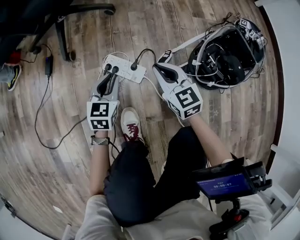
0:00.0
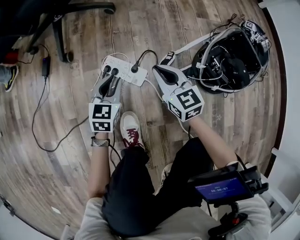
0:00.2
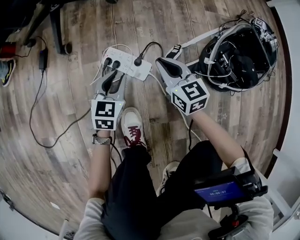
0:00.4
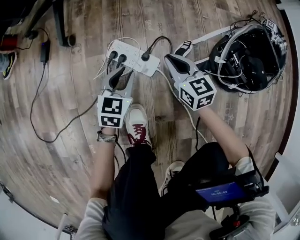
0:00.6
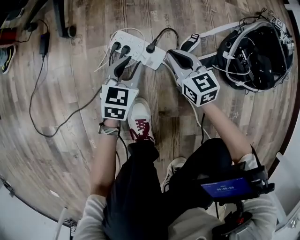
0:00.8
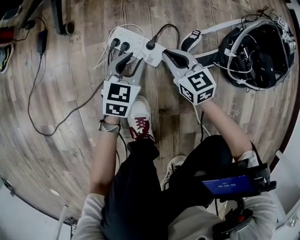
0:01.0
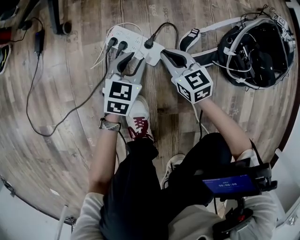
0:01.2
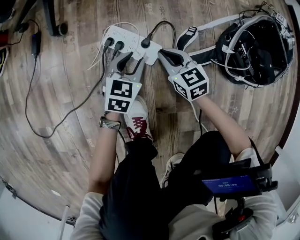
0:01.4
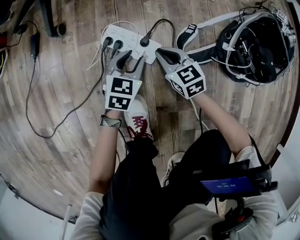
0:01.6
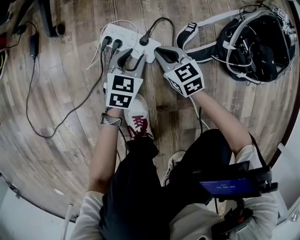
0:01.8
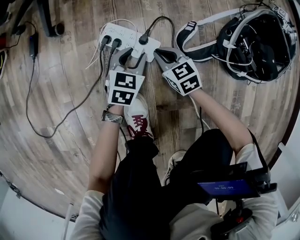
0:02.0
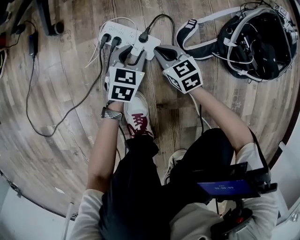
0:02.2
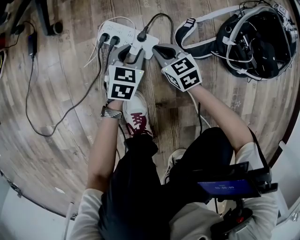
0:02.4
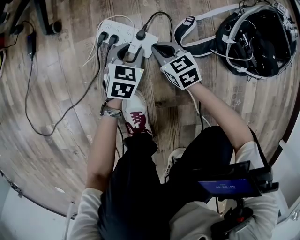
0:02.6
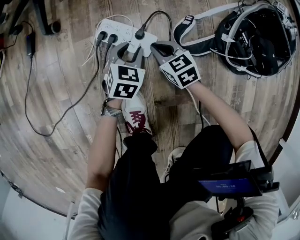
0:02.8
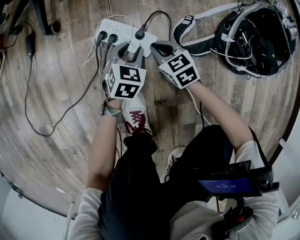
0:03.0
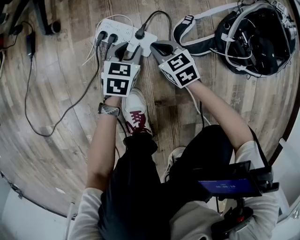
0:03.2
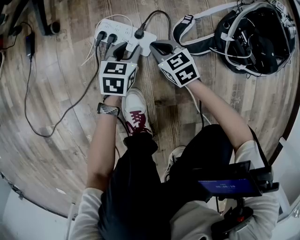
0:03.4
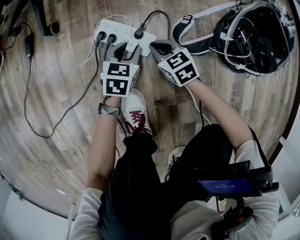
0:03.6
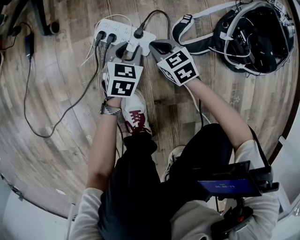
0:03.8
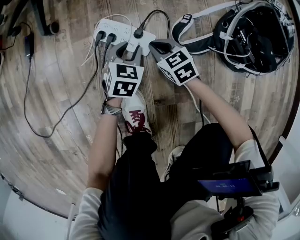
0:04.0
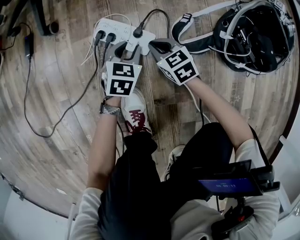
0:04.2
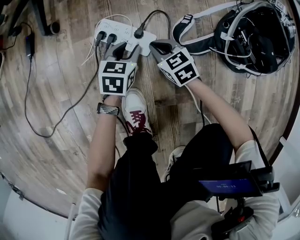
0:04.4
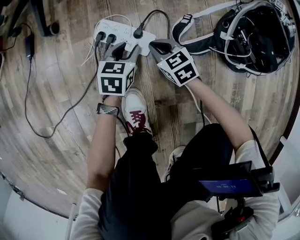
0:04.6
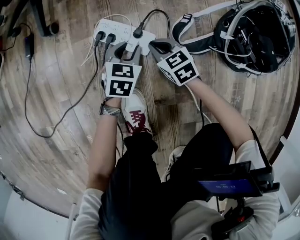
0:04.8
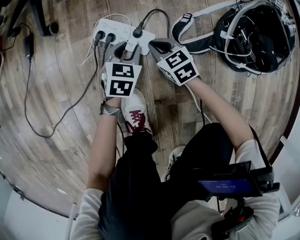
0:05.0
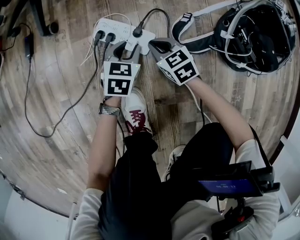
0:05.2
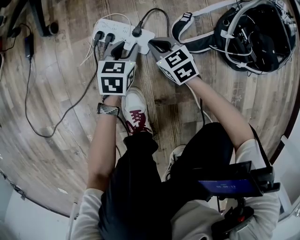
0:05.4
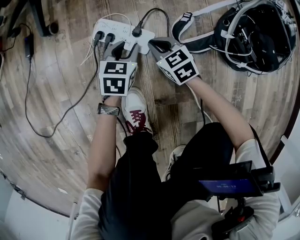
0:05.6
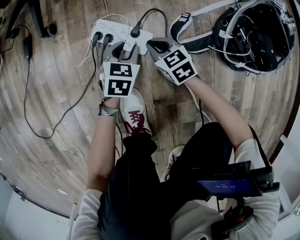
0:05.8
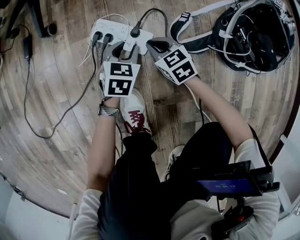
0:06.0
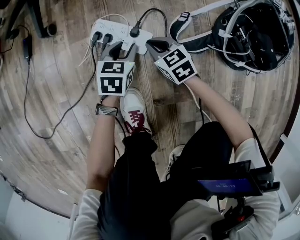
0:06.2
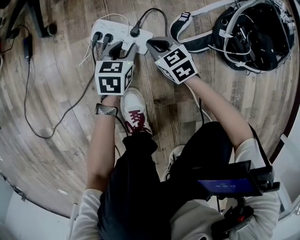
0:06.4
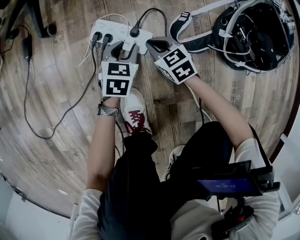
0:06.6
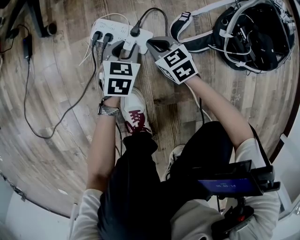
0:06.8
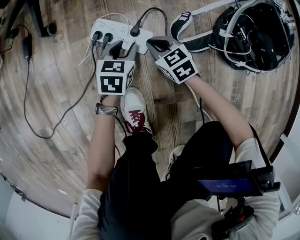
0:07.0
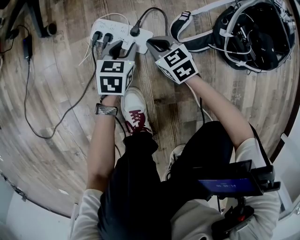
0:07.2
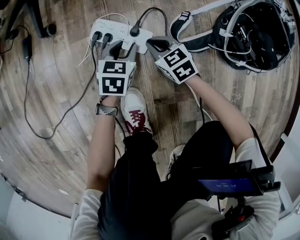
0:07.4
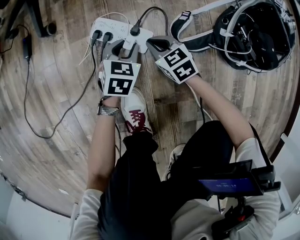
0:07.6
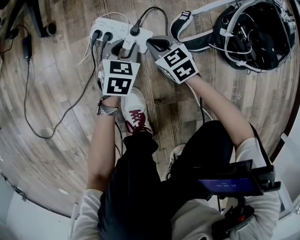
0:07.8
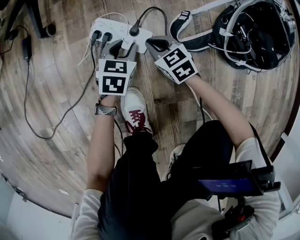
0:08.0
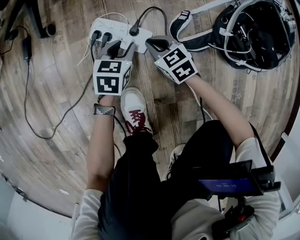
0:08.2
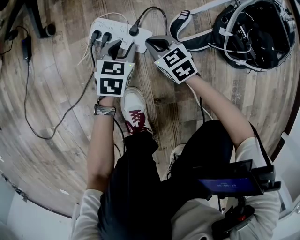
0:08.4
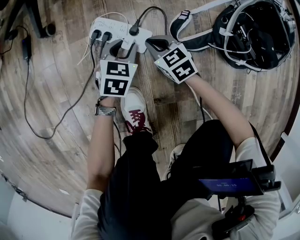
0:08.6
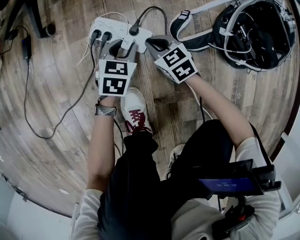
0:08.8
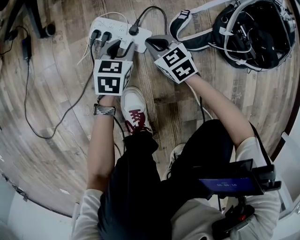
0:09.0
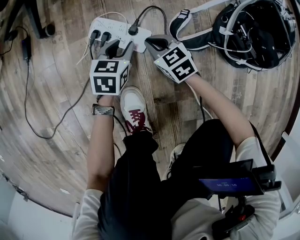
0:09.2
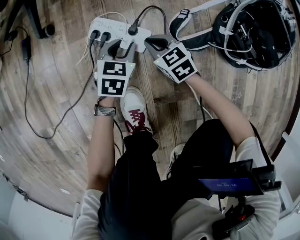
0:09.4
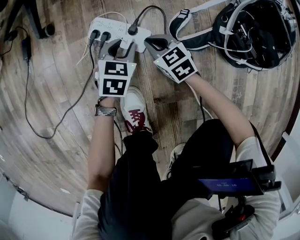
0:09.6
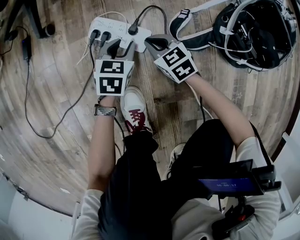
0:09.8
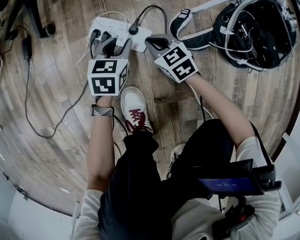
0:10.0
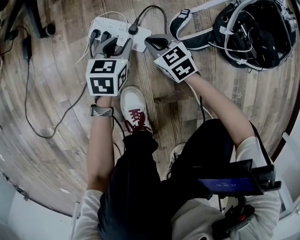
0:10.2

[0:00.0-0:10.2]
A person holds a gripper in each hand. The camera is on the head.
0:00.0 to 0:01.4: The grippers both shift downward by about 15 cm.
0:01.4 to 0:10.2: The grippers stay close to where they were, moving slightly.

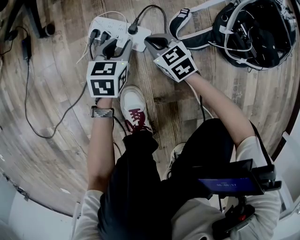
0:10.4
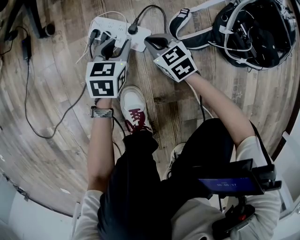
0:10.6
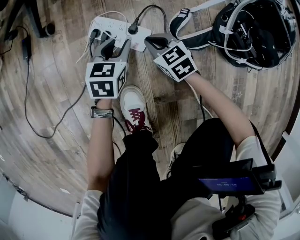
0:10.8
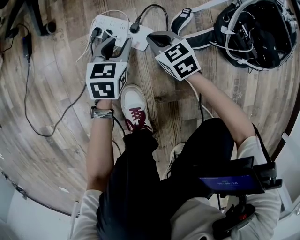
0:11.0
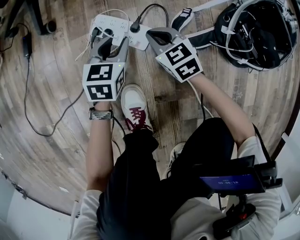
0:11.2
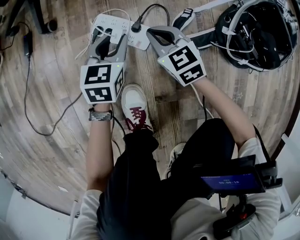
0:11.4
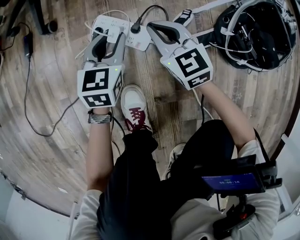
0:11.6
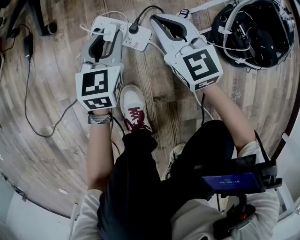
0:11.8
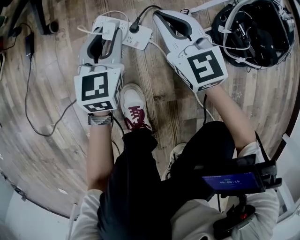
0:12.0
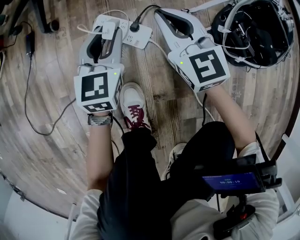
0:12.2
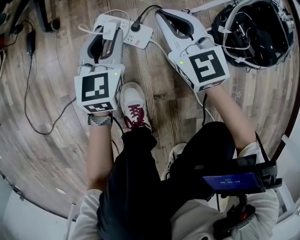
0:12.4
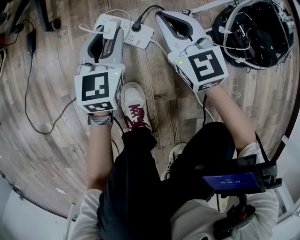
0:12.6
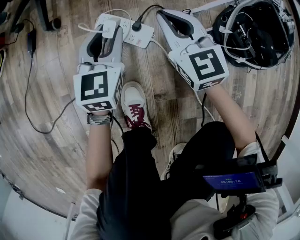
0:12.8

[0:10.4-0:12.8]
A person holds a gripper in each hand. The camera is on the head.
0:10.4 to 0:11.6: The left gripper is displaced upward by some 5 cm, while the right gripper moves upward, some 10 cm.
0:11.6 to 0:12.8: Both grippers travel together upward, about 5 cm.

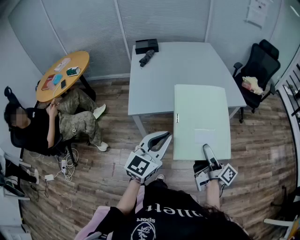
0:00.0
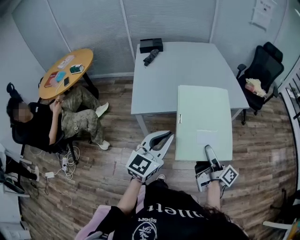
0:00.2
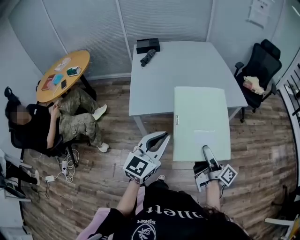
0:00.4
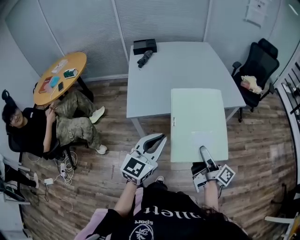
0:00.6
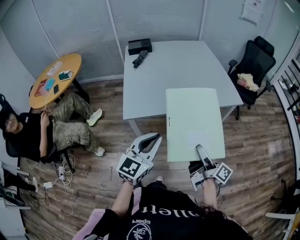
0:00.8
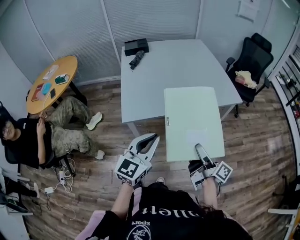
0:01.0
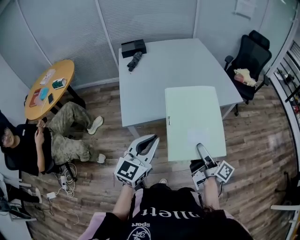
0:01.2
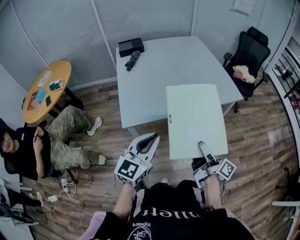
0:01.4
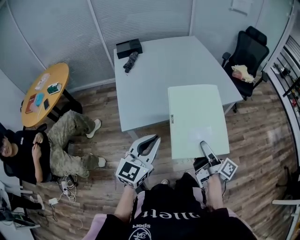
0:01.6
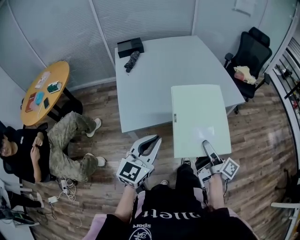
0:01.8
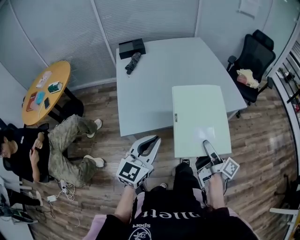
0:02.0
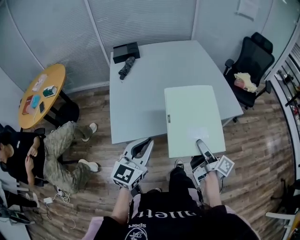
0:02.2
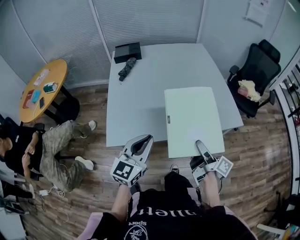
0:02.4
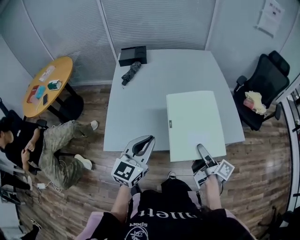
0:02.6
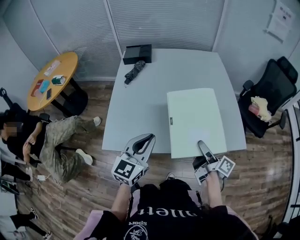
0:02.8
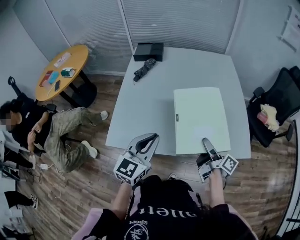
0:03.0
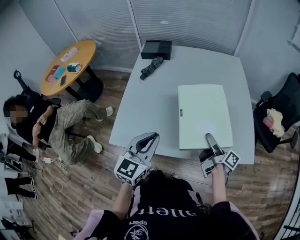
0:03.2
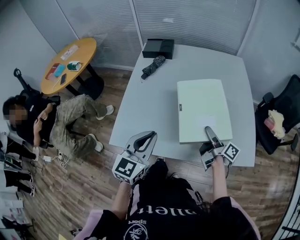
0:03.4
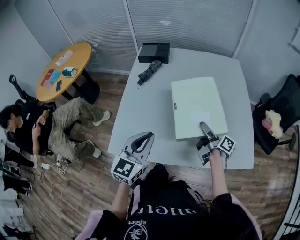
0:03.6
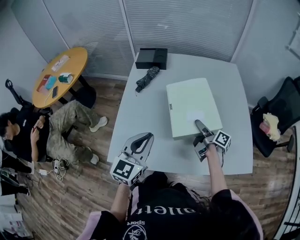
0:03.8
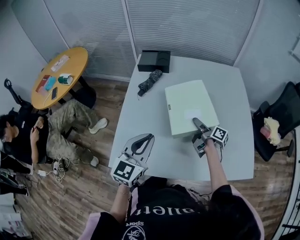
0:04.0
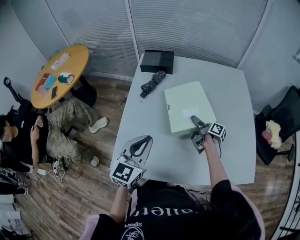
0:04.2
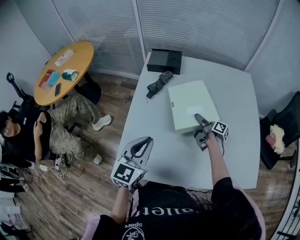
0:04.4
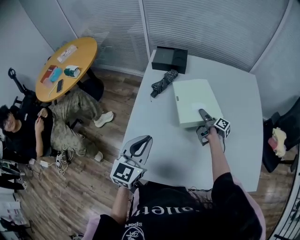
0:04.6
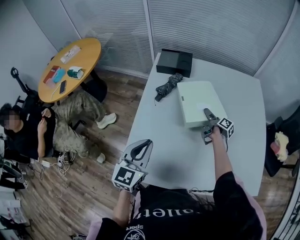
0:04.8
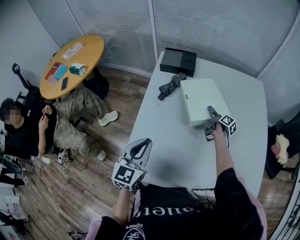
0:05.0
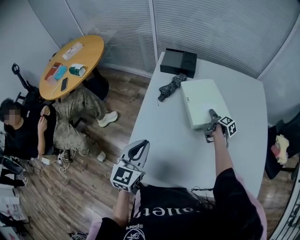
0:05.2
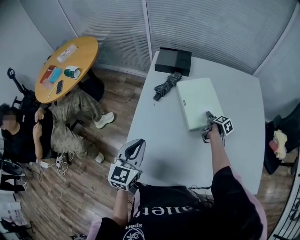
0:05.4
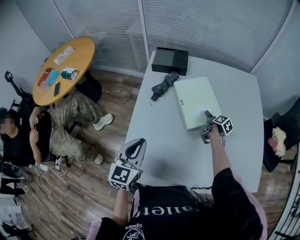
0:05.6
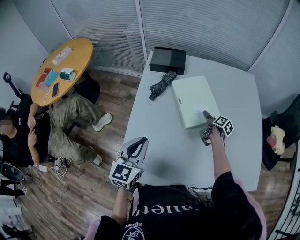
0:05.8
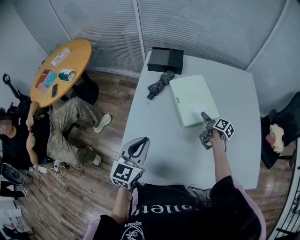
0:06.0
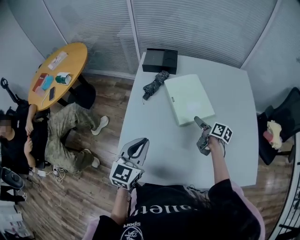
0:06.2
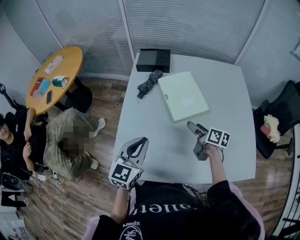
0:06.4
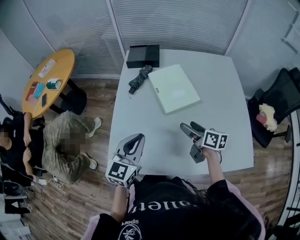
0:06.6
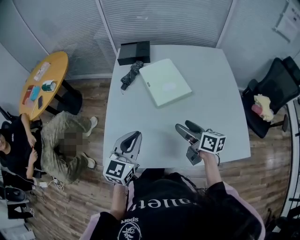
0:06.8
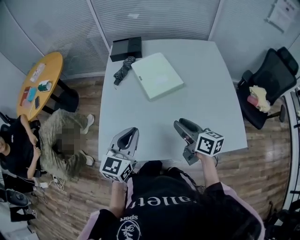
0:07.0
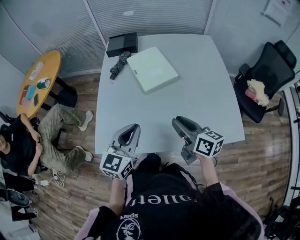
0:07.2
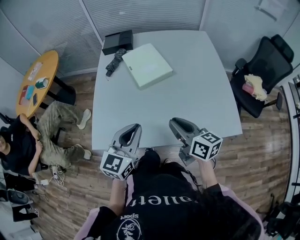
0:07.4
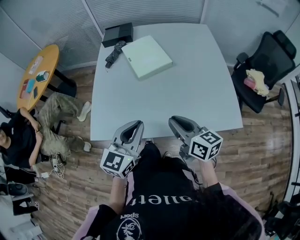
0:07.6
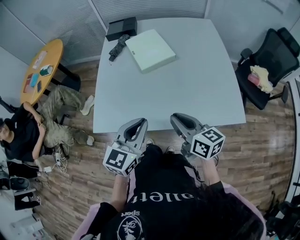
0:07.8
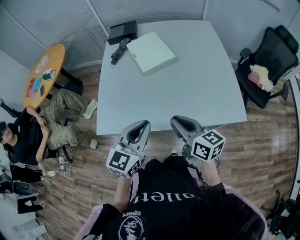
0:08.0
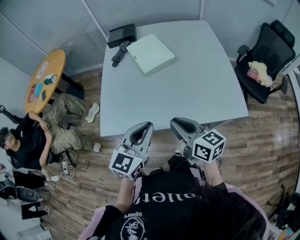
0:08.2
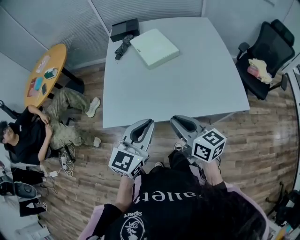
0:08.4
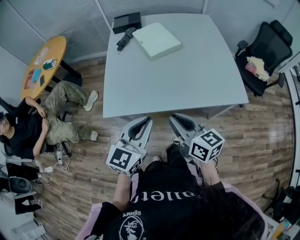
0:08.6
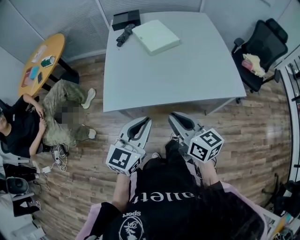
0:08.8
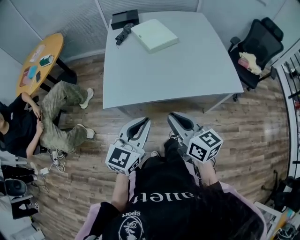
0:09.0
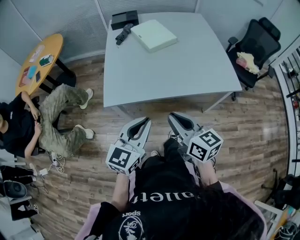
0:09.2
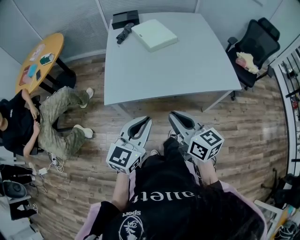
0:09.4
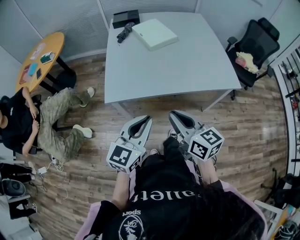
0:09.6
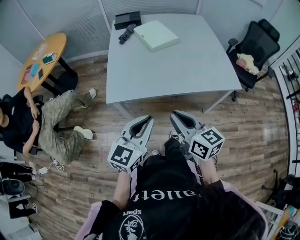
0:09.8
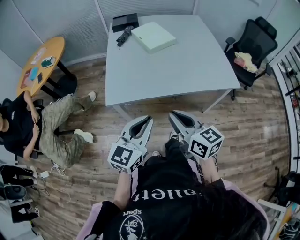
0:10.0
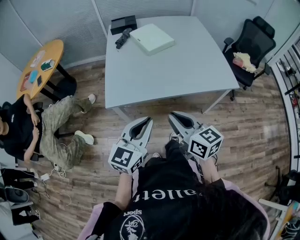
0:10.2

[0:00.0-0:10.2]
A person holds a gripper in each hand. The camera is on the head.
0:00.0 to 0:01.4: The left gripper shifts approximately 10 cm to the left and forward. Meanwhile the right gripper moves forward, roughly 5 cm.
0:01.4 to 0:03.0: The grippers both shift forward by roughly 30 cm. The left gripper turns by roughly 20 degrees.
0:03.0 to 0:04.4: The left gripper moves forward and to the left, roughly 20 cm. The right gripper heads forward, covering about 35 cm.
0:04.4 to 0:05.8: The right gripper is displaced forward by some 5 cm, and turns by about 30 degrees; the left gripper travels to the left by roughly 5 cm.
0:05.8 to 0:07.2: The right gripper moves backward and upward, roughly 40 cm, rotates some 50 degrees, and closes its fingers. Meanwhile the left gripper travels to the right and backward by about 20 cm.
0:07.2 to 0:08.8: The right gripper goes some 25 cm backward and to the left. Meanwhile the left gripper goes about 25 cm backward.
0:08.8 to 0:10.2: The two grippers go approximately 5 cm backward.

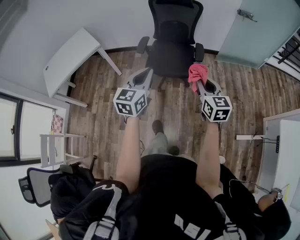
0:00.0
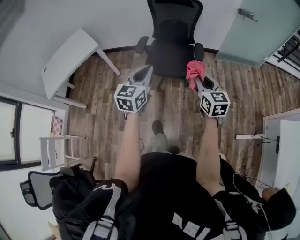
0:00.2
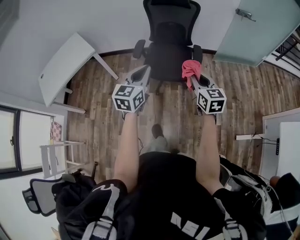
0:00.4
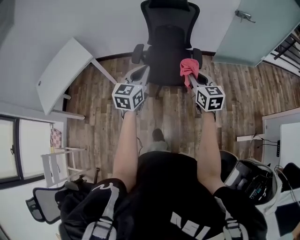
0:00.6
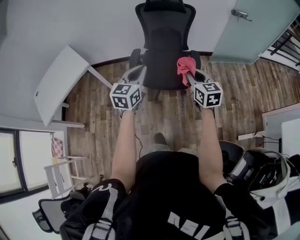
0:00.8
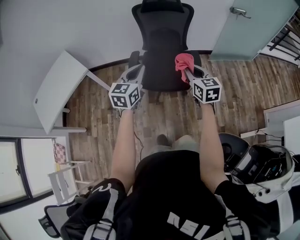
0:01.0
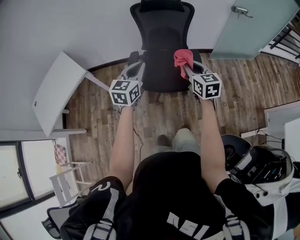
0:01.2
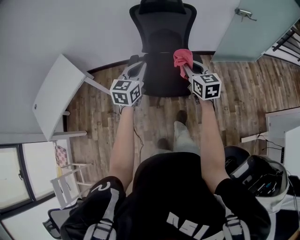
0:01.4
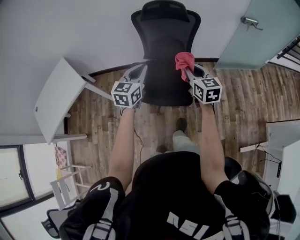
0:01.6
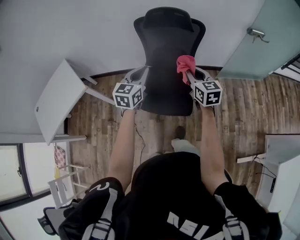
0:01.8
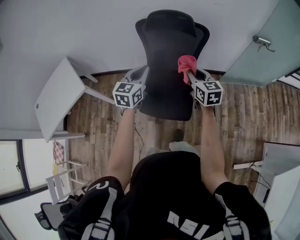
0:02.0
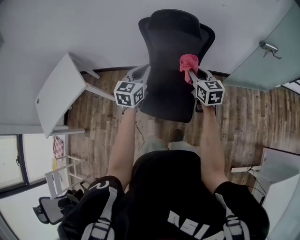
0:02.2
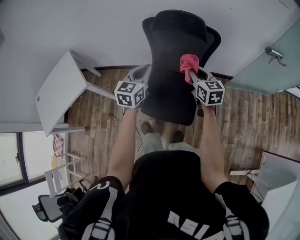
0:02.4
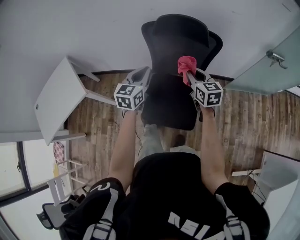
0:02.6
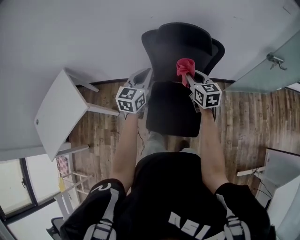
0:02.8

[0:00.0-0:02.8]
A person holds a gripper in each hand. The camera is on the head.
0:00.0 to 0:01.4: The grippers both shift forward by some 35 cm.
0:01.4 to 0:02.8: The two grippers go roughly 35 cm forward.
